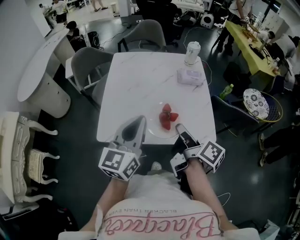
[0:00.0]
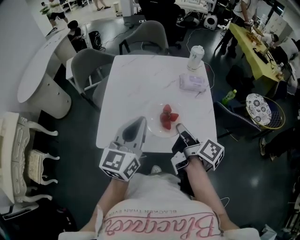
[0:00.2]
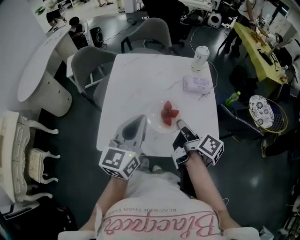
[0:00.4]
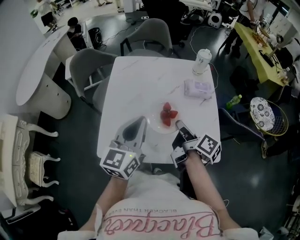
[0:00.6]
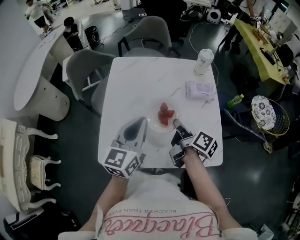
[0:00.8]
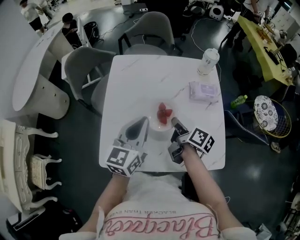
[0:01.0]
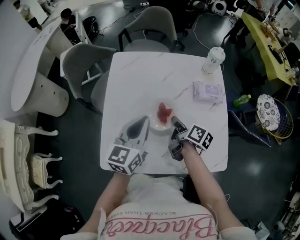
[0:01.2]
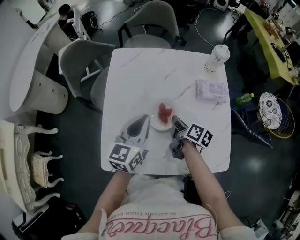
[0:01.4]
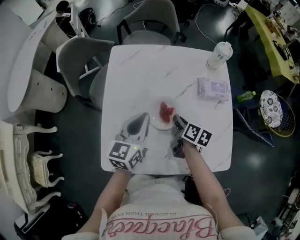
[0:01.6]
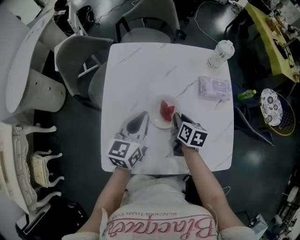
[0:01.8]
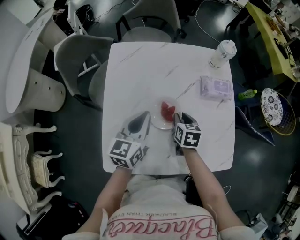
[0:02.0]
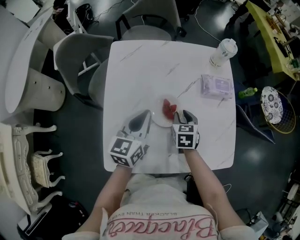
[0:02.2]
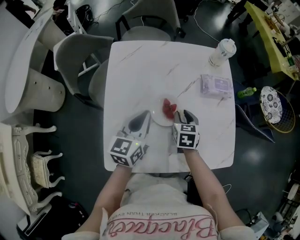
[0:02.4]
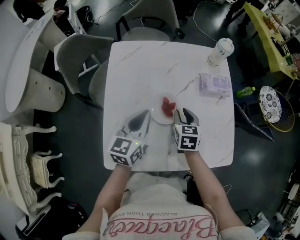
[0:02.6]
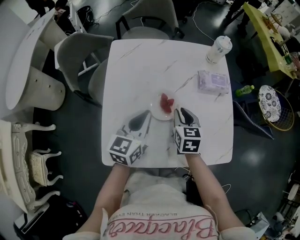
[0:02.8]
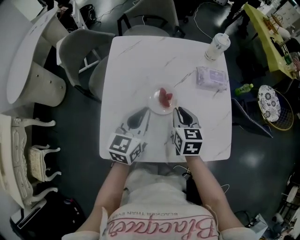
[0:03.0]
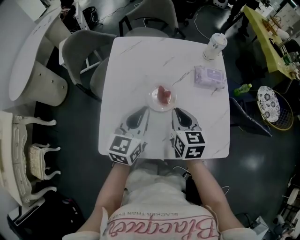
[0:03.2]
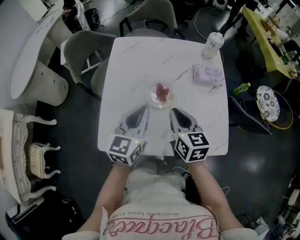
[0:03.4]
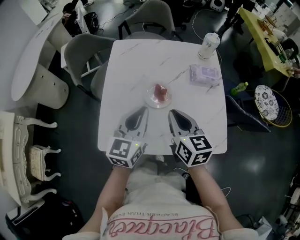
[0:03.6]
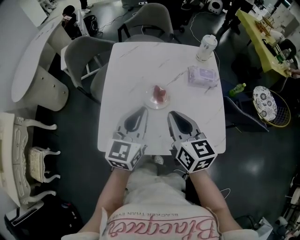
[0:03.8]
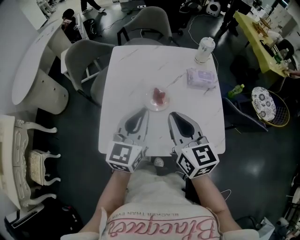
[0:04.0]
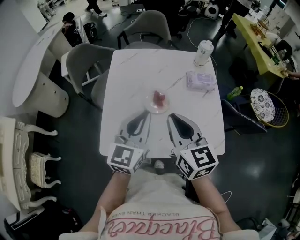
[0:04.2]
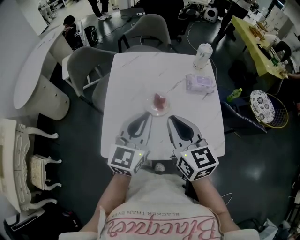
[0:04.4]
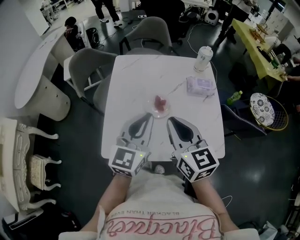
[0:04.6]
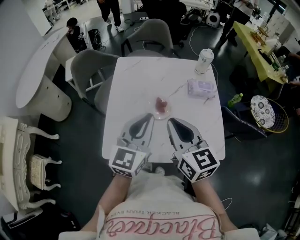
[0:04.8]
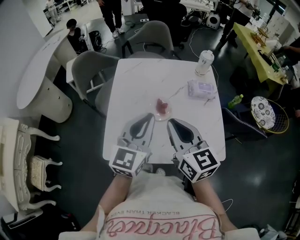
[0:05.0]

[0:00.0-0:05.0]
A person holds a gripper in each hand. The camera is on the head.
0:00.0 to 0:01.6: The grippers both shift forward and downward by roughly 30 cm. The right gripper changes its angle by about 30 degrees.
0:01.6 to 0:03.4: The left gripper shifts approximately 10 cm backward, while the right gripper is displaced upward and backward by approximately 15 cm, rotates about 40 degrees, and opens and closes again.
0:03.4 to 0:05.0: The left gripper moves upward, roughly 10 cm, while the right gripper goes some 15 cm upward and backward.

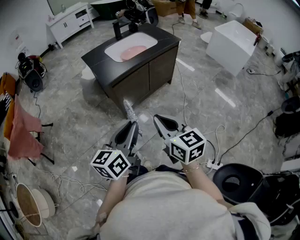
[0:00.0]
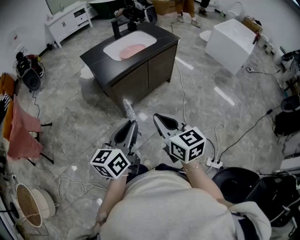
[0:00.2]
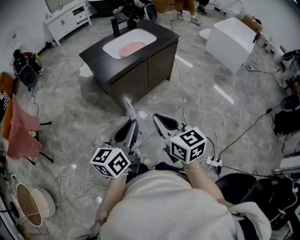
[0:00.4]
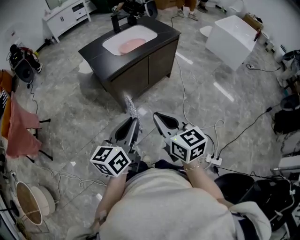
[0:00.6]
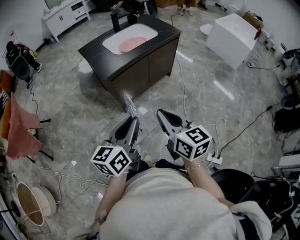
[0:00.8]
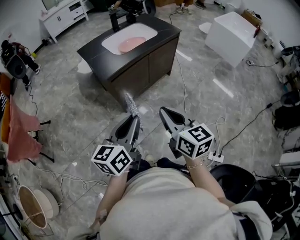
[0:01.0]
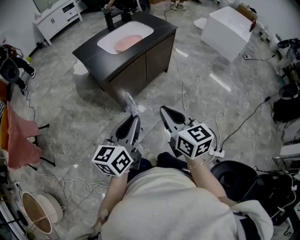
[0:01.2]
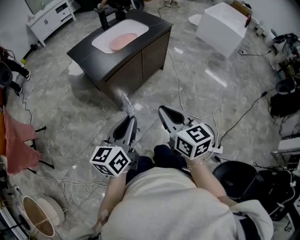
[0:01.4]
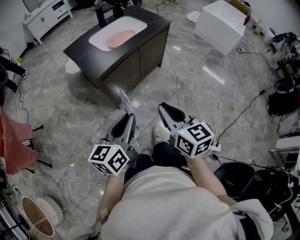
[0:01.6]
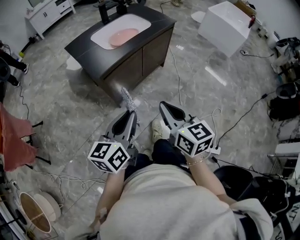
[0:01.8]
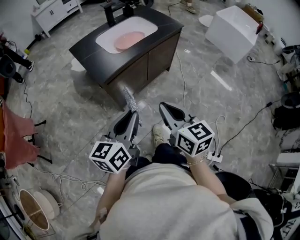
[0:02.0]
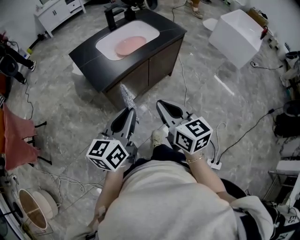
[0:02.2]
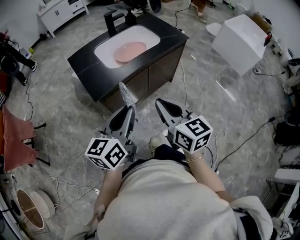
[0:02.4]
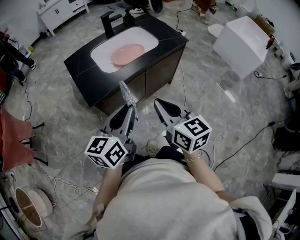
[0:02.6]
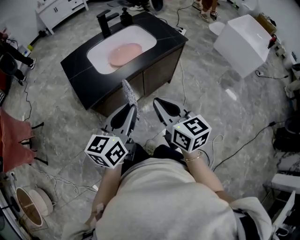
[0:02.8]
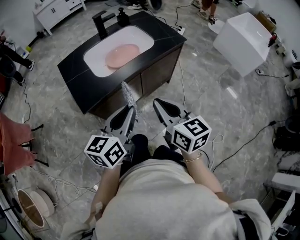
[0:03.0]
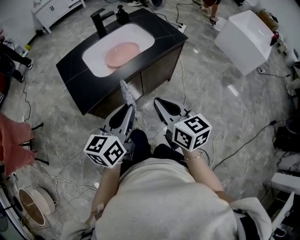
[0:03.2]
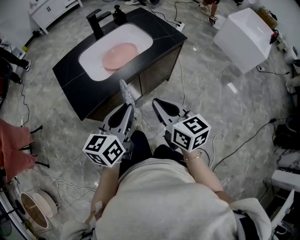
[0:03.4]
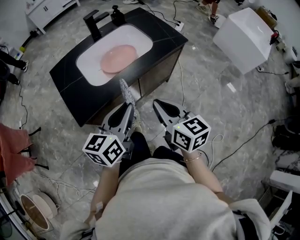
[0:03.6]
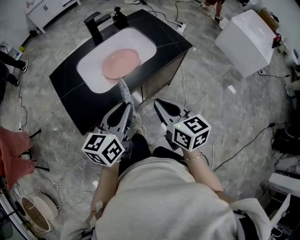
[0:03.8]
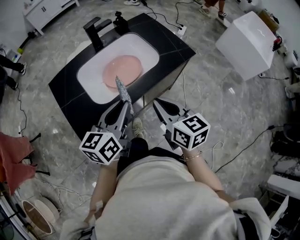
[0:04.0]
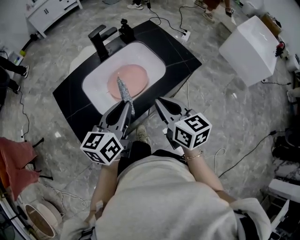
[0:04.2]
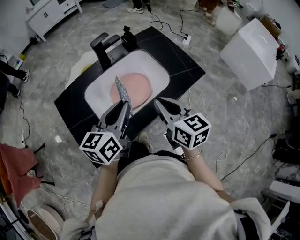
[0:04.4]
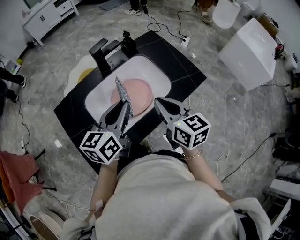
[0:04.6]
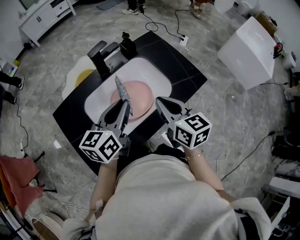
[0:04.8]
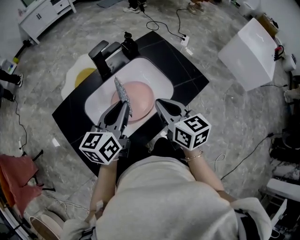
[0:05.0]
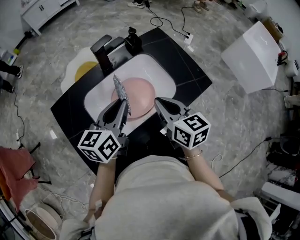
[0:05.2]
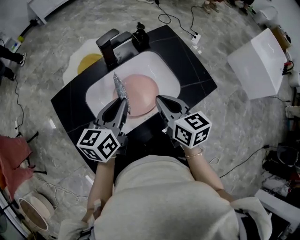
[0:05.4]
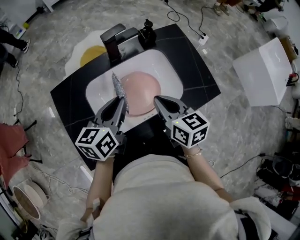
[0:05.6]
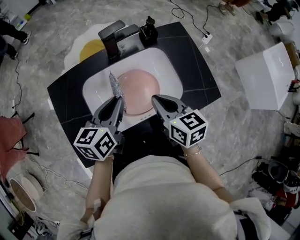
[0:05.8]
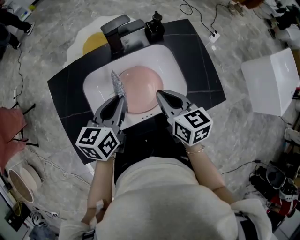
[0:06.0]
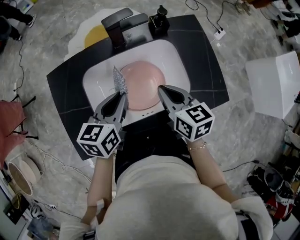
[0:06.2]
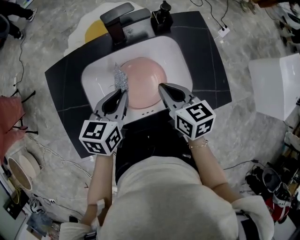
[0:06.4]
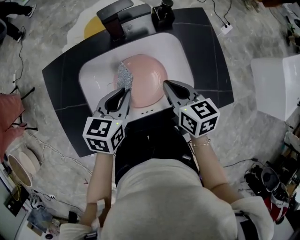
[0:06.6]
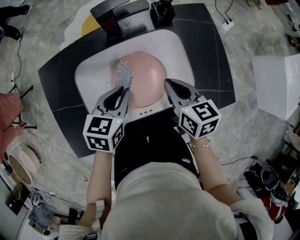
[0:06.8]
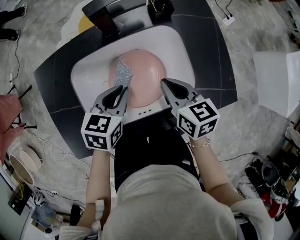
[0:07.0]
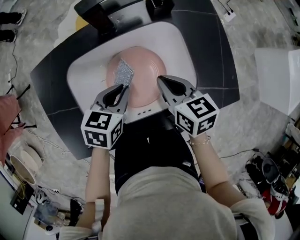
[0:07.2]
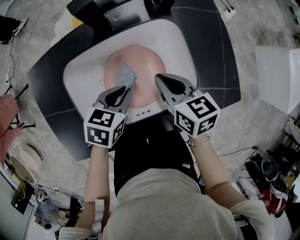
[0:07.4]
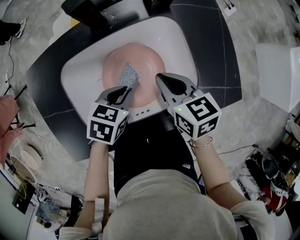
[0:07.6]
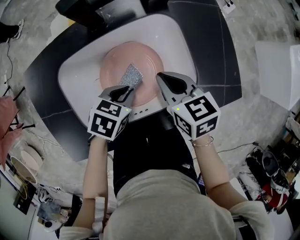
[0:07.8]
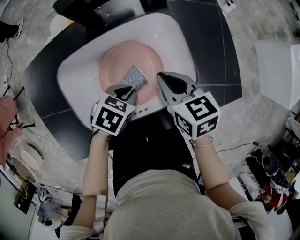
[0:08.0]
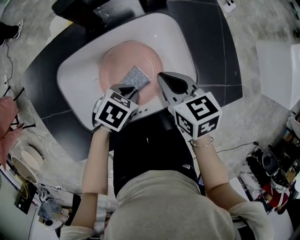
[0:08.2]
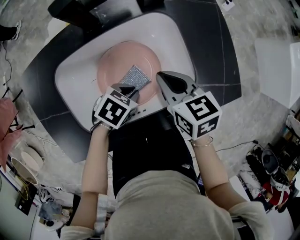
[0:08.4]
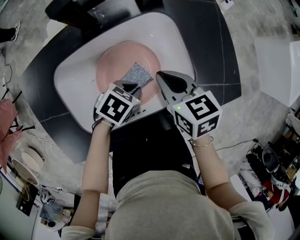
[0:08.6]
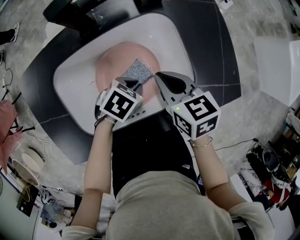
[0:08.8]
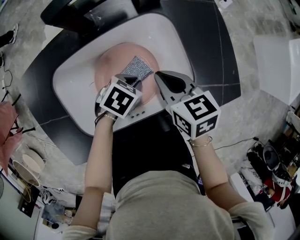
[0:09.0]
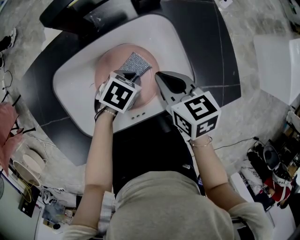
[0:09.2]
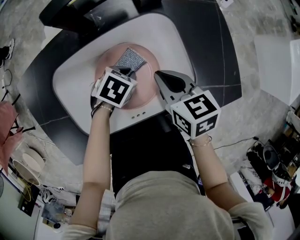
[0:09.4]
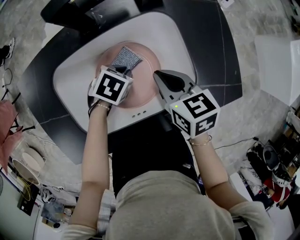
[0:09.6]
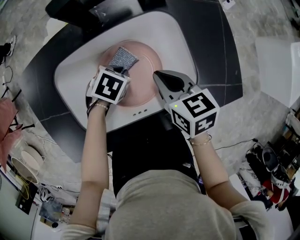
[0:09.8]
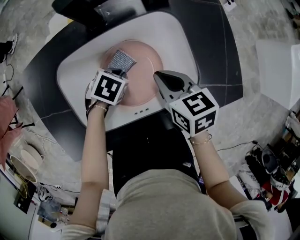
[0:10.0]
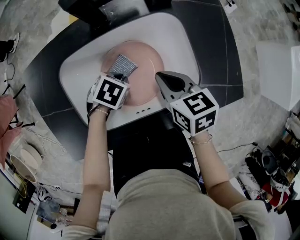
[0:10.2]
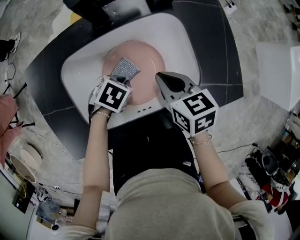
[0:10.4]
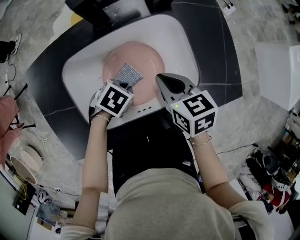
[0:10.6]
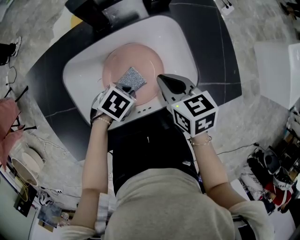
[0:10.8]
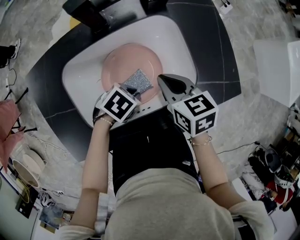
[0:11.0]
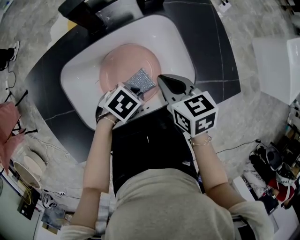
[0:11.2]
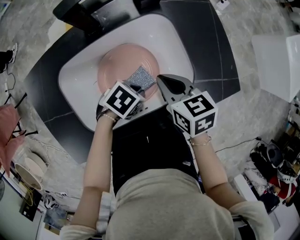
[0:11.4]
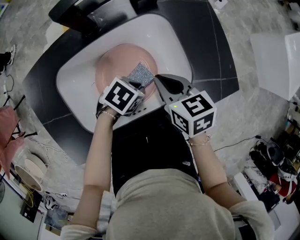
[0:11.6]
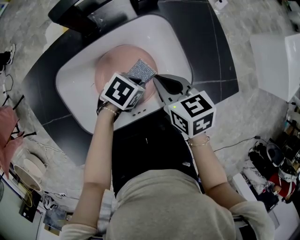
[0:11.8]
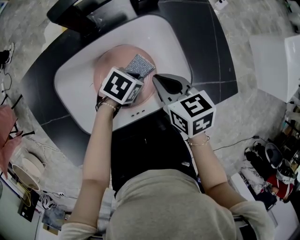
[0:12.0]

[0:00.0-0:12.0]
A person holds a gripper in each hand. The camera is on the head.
0:00.0 to 0:01.6: The right gripper shifts by approximately 5 cm; the left gripper is displaced forward by some 5 cm.
0:01.6 to 0:03.0: The right gripper moves forward, roughly 25 cm; the left gripper moves forward and to the right, approximately 30 cm.
0:03.0 to 0:04.4: Both grippers move forward, roughly 30 cm.
0:04.4 to 0:06.0: The grippers both shift forward and downward by approximately 15 cm. The right gripper swivels about 20 degrees. The left gripper turns by roughly 20 degrees.
0:06.0 to 0:07.6: The right gripper is displaced downward by some 10 cm. The left gripper is displaced downward by some 15 cm, and tips its fingers downward by about 30 degrees.
0:07.6 to 0:09.0: The left gripper travels downward and to the right by roughly 10 cm.
0:09.0 to 0:10.4: The left gripper travels to the left by roughly 5 cm.
0:10.4 to 0:12.0: The left gripper ends up about 10 cm from where it was.

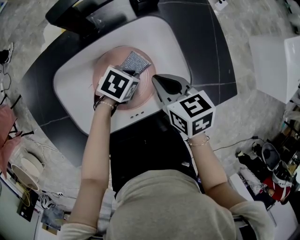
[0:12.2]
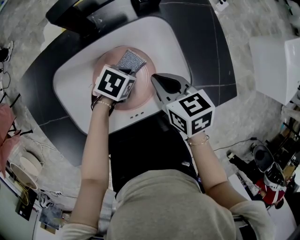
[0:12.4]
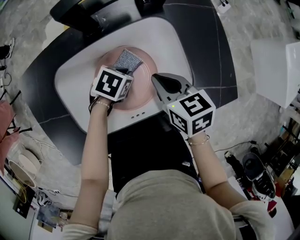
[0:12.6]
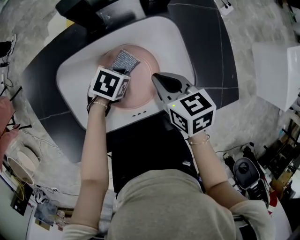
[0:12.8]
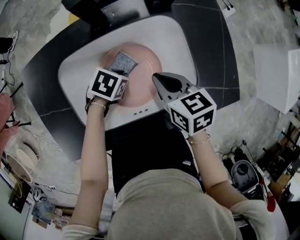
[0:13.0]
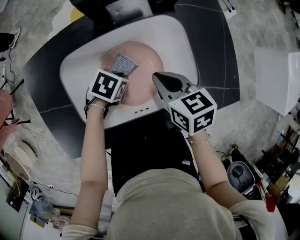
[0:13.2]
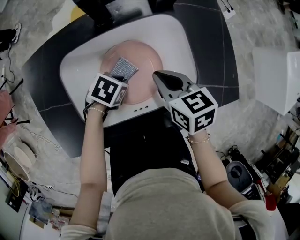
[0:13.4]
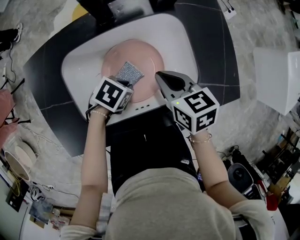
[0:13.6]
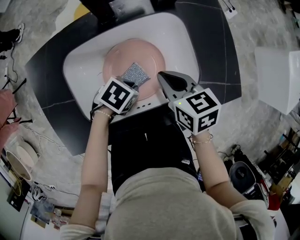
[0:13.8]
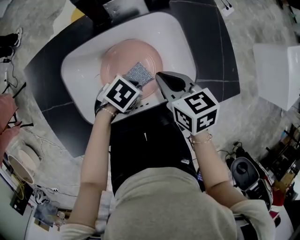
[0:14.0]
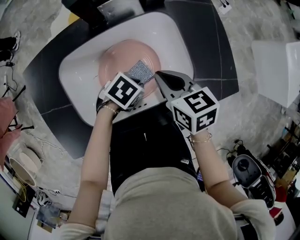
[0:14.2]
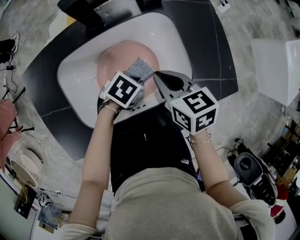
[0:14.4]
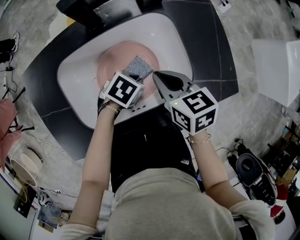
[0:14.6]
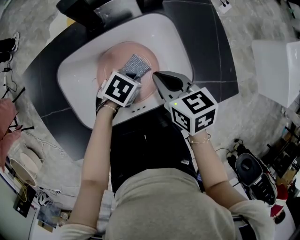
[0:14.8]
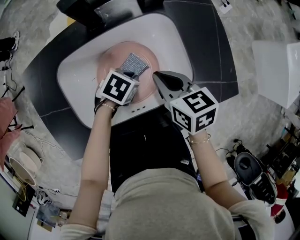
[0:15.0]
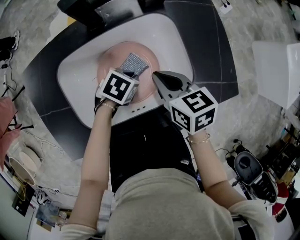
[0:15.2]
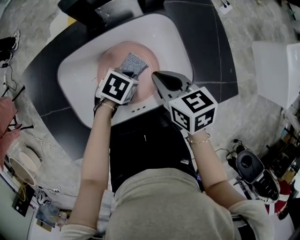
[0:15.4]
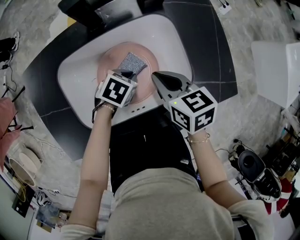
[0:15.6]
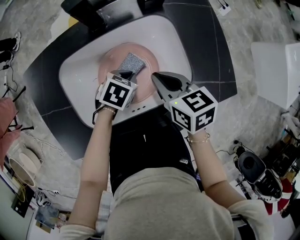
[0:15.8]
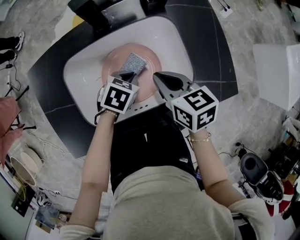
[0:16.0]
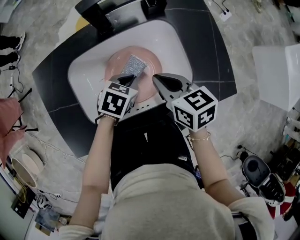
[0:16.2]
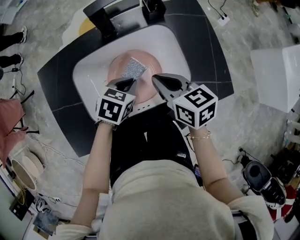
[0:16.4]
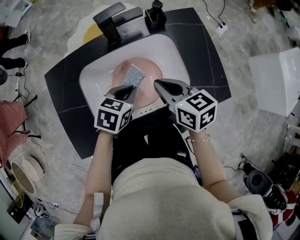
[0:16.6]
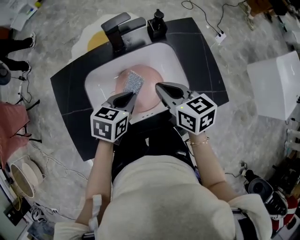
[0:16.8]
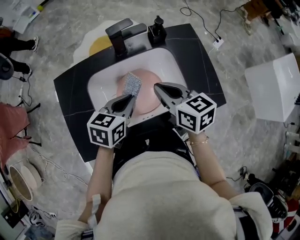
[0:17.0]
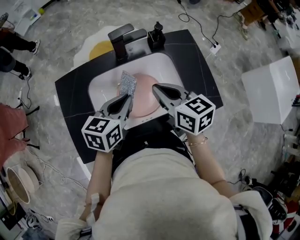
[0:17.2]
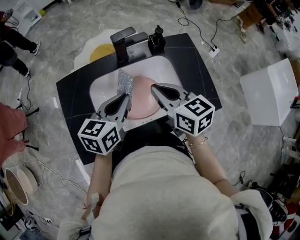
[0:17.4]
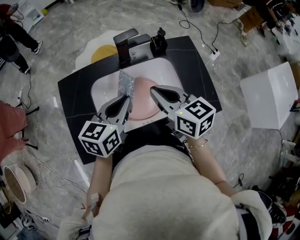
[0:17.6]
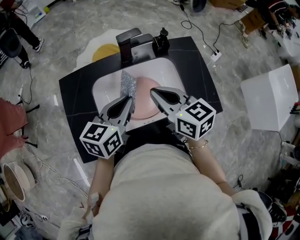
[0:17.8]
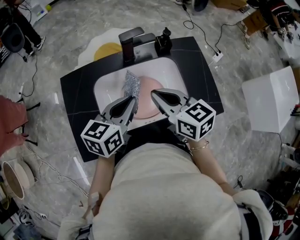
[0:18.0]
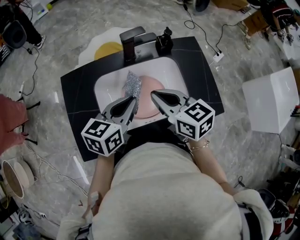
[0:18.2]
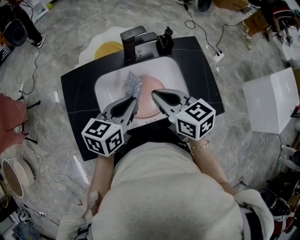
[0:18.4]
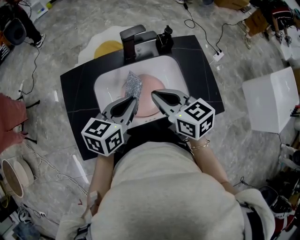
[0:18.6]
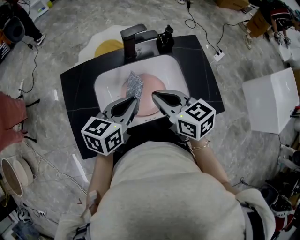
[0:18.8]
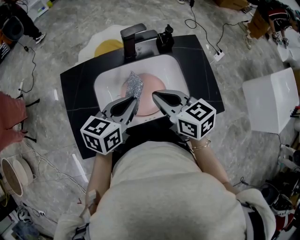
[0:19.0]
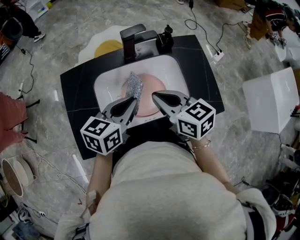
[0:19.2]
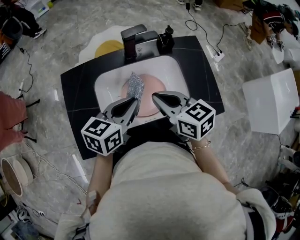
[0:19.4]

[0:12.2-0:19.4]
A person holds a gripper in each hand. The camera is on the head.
0:12.2 to 0:13.6: The left gripper changes place by approximately 10 cm.
0:13.6 to 0:15.0: The left gripper moves roughly 5 cm.
0:15.0 to 0:16.6: The left gripper moves upward, roughly 15 cm, and rotates about 20 degrees; the right gripper is displaced upward by approximately 5 cm.
0:16.6 to 0:18.0: The left gripper goes approximately 15 cm upward, and rotates approximately 30 degrees. Meanwhile the right gripper shifts about 10 cm upward.
0:18.0 to 0:19.4: The grippers make only small movements.
